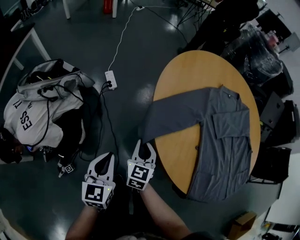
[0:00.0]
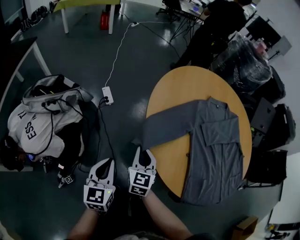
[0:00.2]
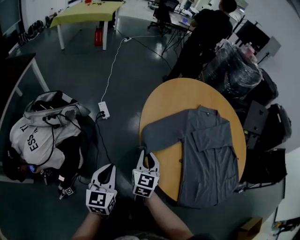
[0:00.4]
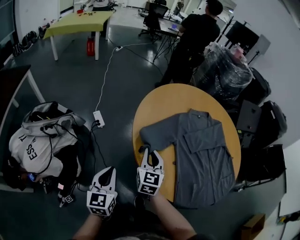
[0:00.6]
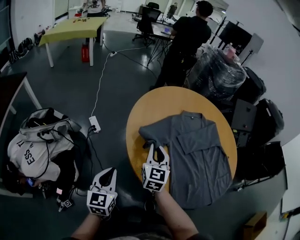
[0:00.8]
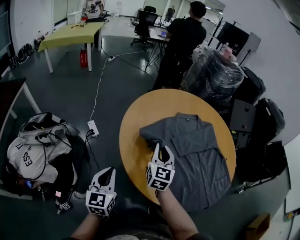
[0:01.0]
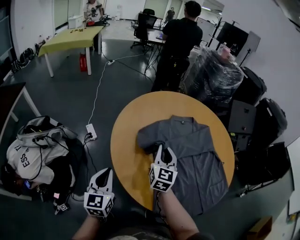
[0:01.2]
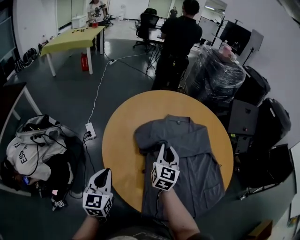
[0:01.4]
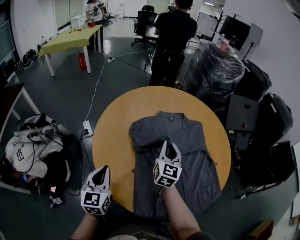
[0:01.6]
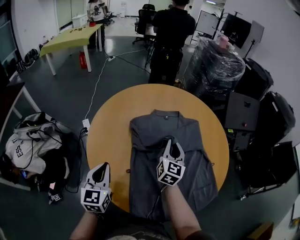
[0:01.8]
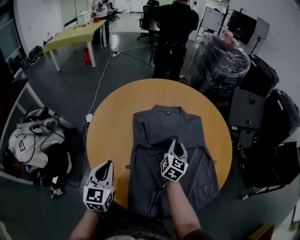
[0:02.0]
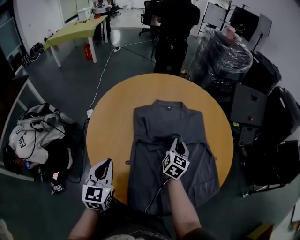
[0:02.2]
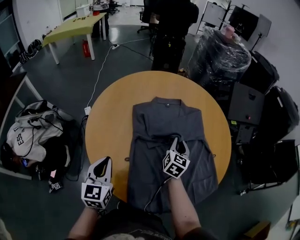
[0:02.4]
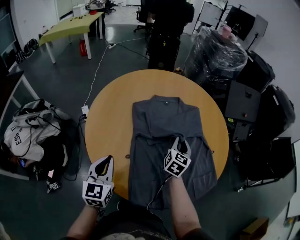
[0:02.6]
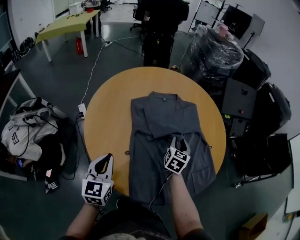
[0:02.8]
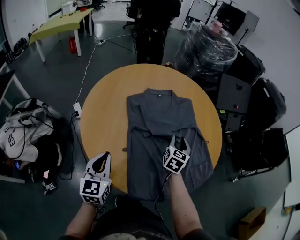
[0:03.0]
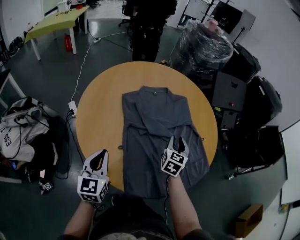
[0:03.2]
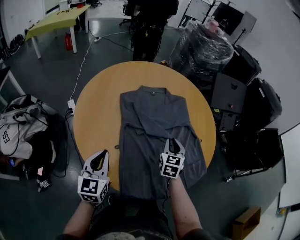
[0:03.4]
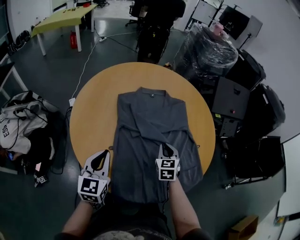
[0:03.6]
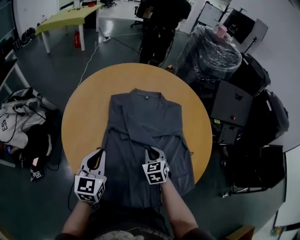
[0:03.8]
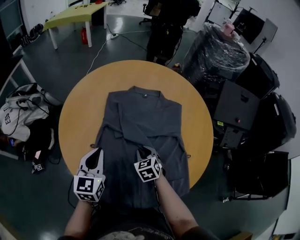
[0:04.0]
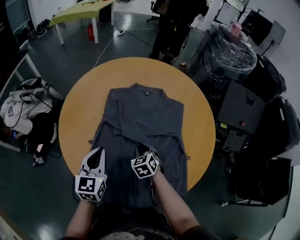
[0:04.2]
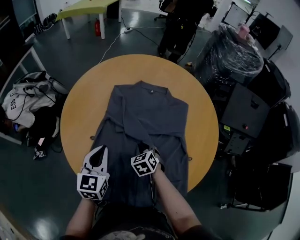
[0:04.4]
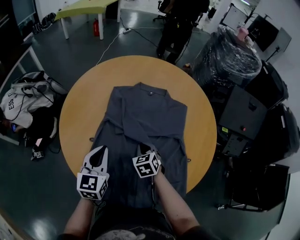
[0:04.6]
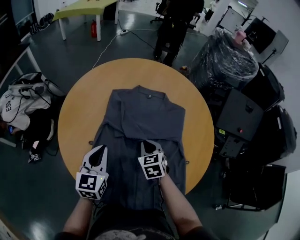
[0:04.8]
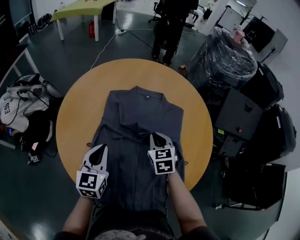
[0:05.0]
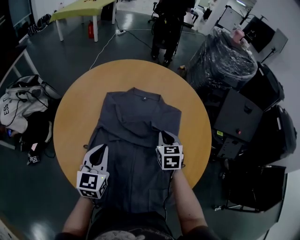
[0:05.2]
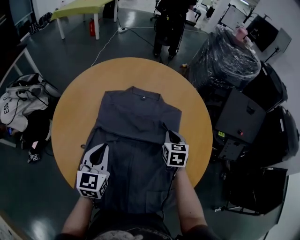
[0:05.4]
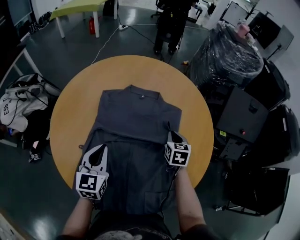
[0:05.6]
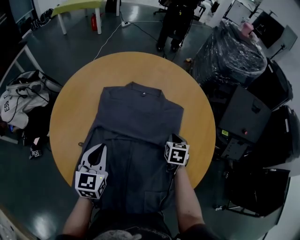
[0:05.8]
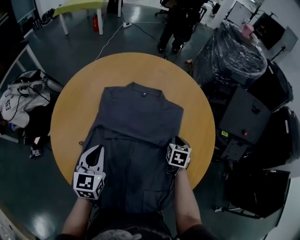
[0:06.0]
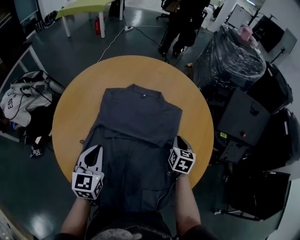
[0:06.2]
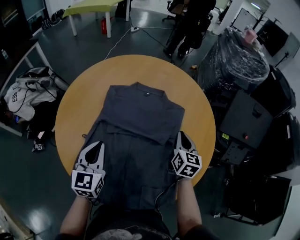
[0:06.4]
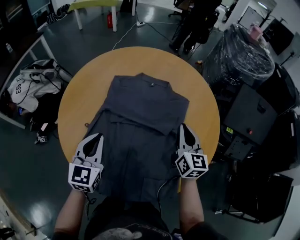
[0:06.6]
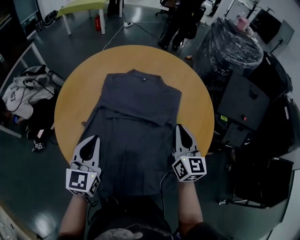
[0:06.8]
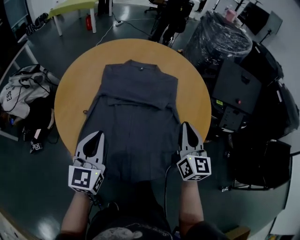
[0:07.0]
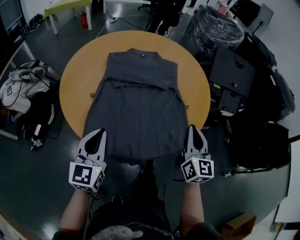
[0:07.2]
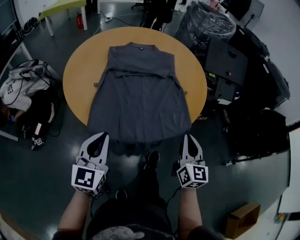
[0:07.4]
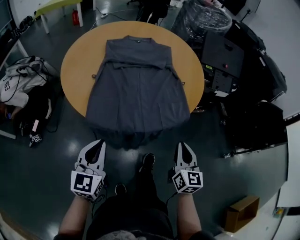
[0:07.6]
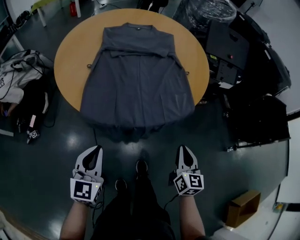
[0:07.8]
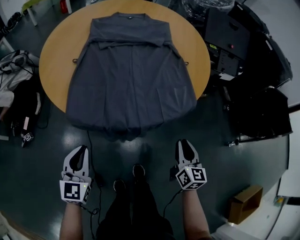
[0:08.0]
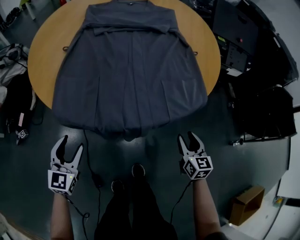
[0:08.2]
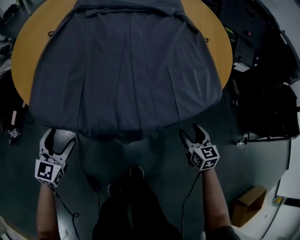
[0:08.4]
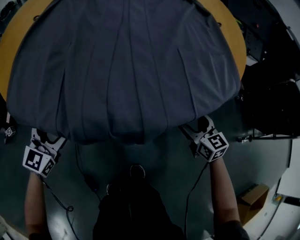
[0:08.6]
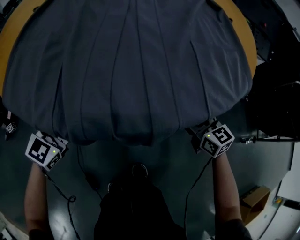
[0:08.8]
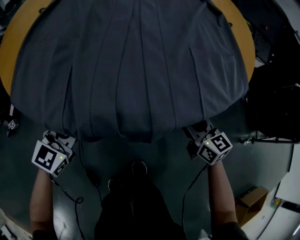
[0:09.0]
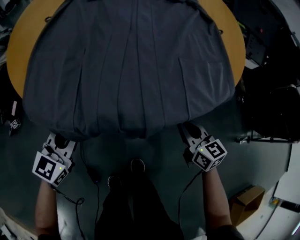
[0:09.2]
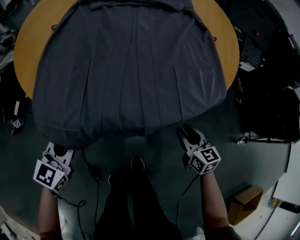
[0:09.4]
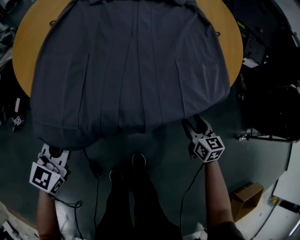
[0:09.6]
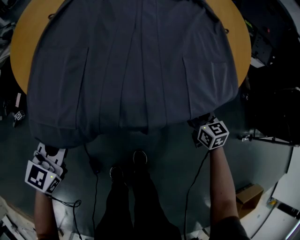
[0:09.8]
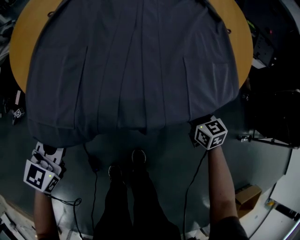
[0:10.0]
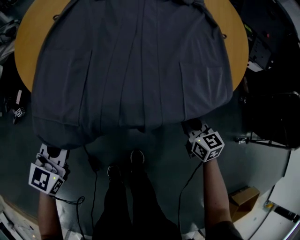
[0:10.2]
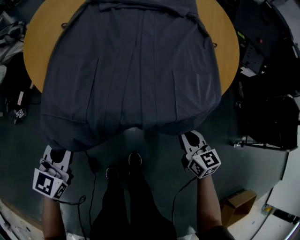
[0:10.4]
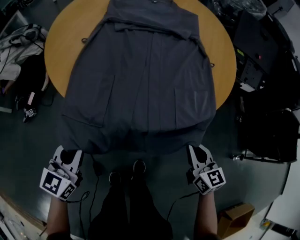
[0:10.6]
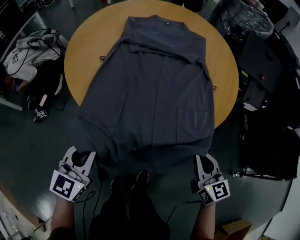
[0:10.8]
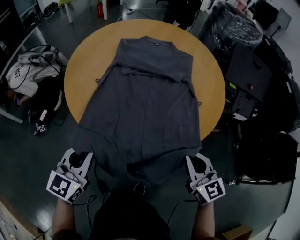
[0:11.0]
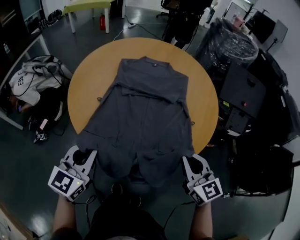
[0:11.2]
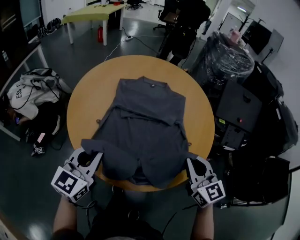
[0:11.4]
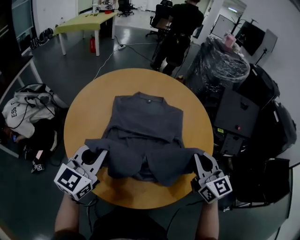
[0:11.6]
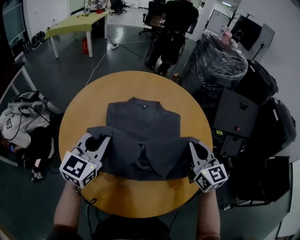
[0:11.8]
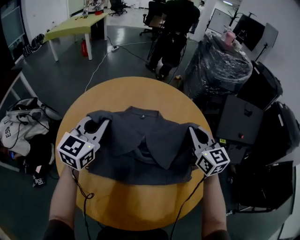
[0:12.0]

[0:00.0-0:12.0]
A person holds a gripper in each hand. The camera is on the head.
0.0 to 1.6 s: The right gripper shifts about 50 cm to the right and upward, and turns by approximately 20 degrees. Meanwhile the left gripper goes about 30 cm to the right and upward.
1.6 to 3.0 s: The left gripper heads to the right, covering about 10 cm. Meanwhile the right gripper is displaced to the right and downward by roughly 20 cm, changes its angle by approximately 20 degrees, and opens up.
3.0 to 4.4 s: The left gripper moves some 20 cm; the right gripper is displaced downward by about 10 cm, and changes its angle by some 70 degrees.
4.4 to 6.0 s: The left gripper travels forward by approximately 5 cm. Meanwhile the right gripper is displaced to the right and forward by some 25 cm, and turns by approximately 40 degrees.
6.0 to 7.6 s: The two grippers go roughly 50 cm backward. The right gripper tilts its fingers about 30 degrees upward.
7.6 to 9.0 s: Both grippers travel together downward, about 35 cm. The left gripper opens up, while the right gripper swivels approximately 30 degrees, and opens.
9.0 to 10.4 s: The left gripper heads upward and backward, covering approximately 15 cm, and closes. The right gripper moves upward and backward, about 10 cm, and closes up.
10.4 to 12.0 s: The pair of grippers is taken forward, about 50 cm. The grippers both shift upward by roughly 40 cm. The right gripper swivels about 30 degrees.

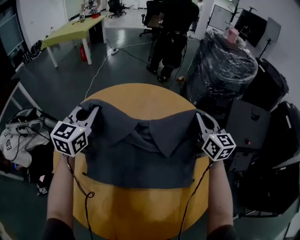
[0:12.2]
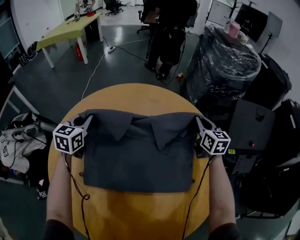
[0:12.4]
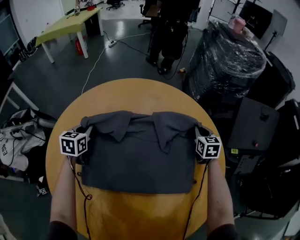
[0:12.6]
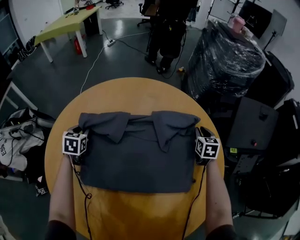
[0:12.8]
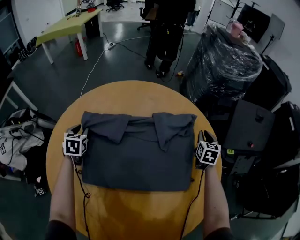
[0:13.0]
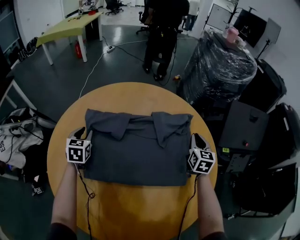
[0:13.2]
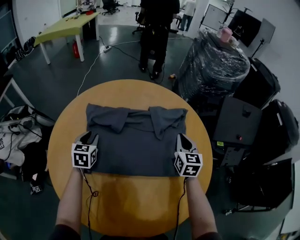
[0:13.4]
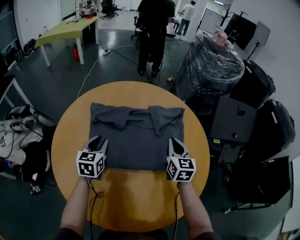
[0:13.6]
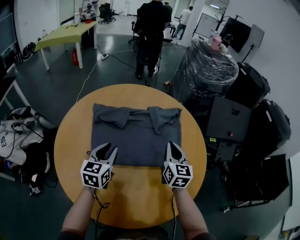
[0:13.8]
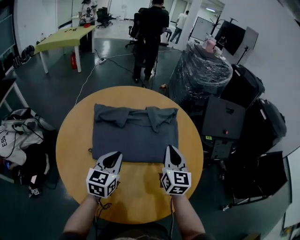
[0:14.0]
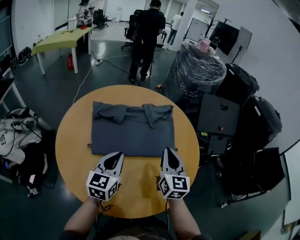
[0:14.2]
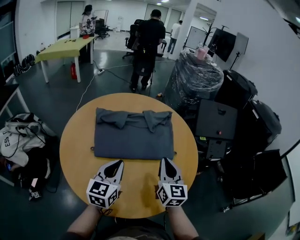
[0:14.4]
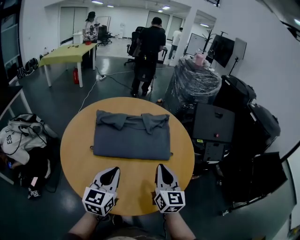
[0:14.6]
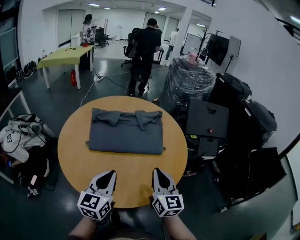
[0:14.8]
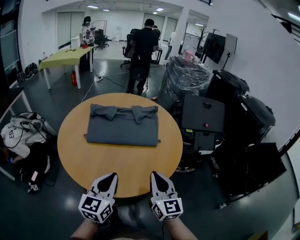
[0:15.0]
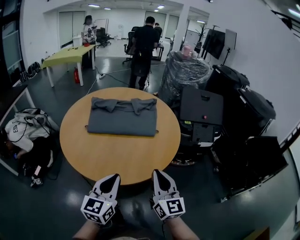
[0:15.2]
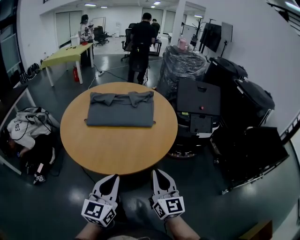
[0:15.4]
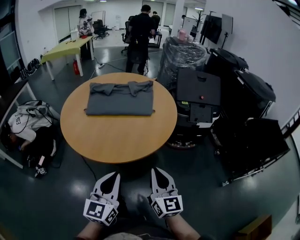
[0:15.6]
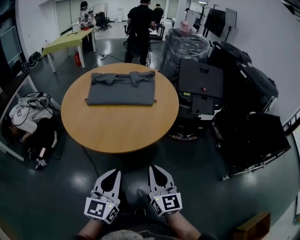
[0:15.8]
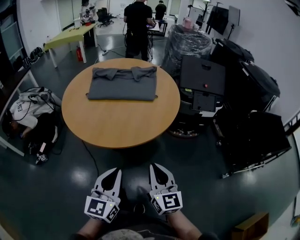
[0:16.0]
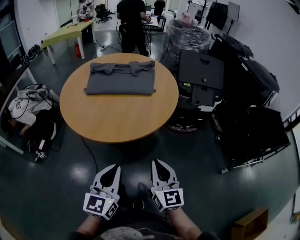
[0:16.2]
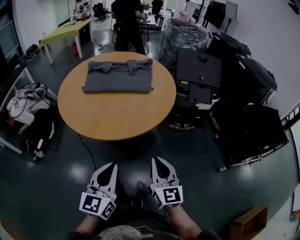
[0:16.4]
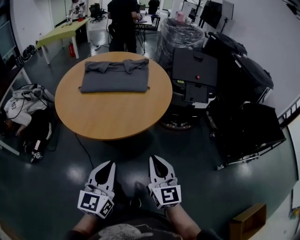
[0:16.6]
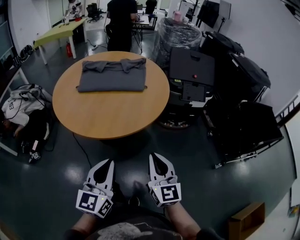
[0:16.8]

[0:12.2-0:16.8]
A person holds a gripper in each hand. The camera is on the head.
12.2 to 13.8 s: The left gripper moves backward and downward, approximately 20 cm, and opens; the right gripper moves backward, approximately 20 cm.
13.8 to 15.2 s: The pair of grippers is taken backward, about 50 cm. The left gripper closes; the right gripper changes its angle by approximately 20 degrees.
15.2 to 16.8 s: The right gripper heads backward and to the right, covering about 15 cm, while the left gripper is displaced backward by roughly 15 cm.

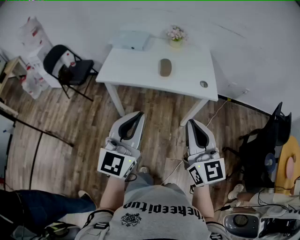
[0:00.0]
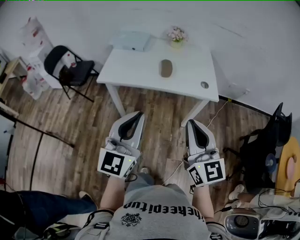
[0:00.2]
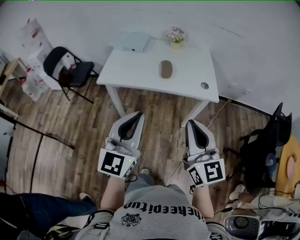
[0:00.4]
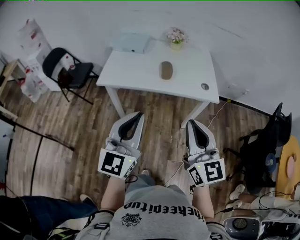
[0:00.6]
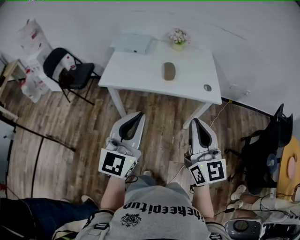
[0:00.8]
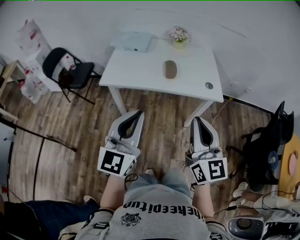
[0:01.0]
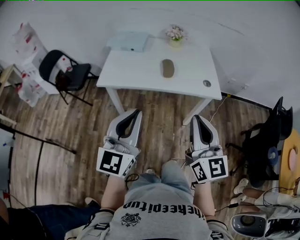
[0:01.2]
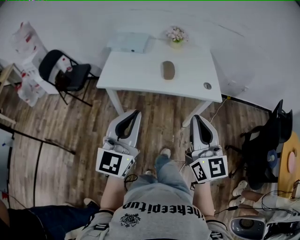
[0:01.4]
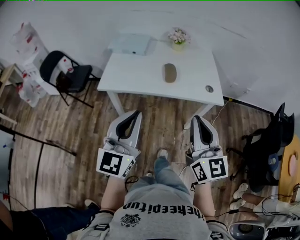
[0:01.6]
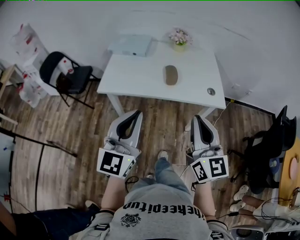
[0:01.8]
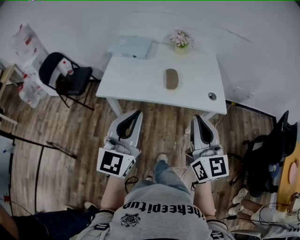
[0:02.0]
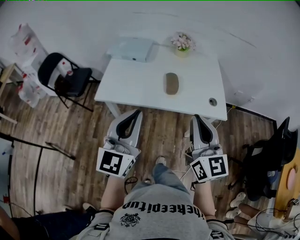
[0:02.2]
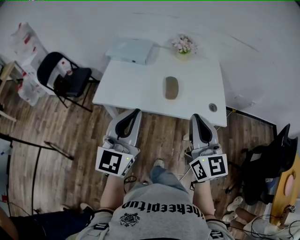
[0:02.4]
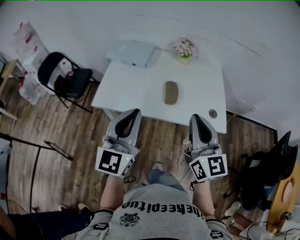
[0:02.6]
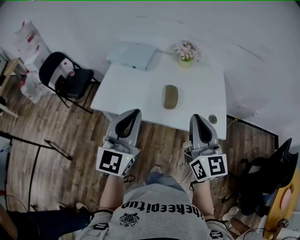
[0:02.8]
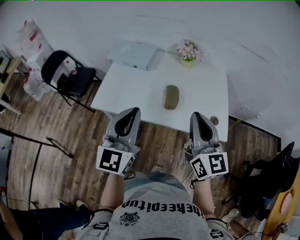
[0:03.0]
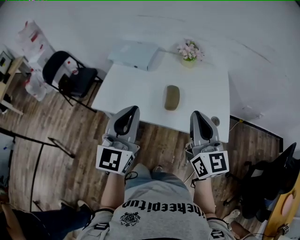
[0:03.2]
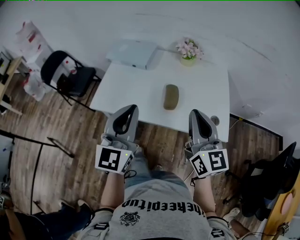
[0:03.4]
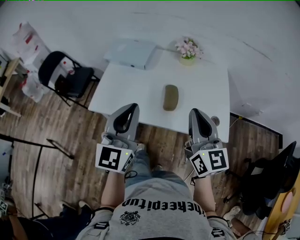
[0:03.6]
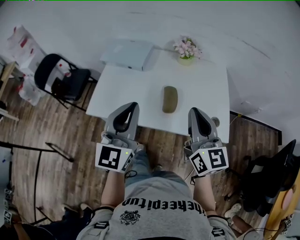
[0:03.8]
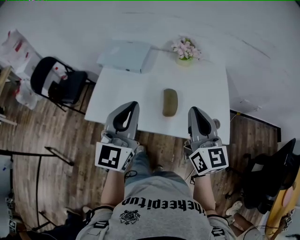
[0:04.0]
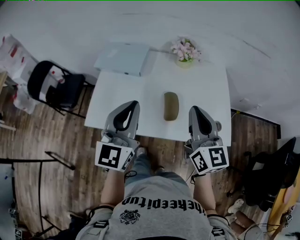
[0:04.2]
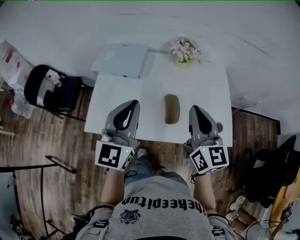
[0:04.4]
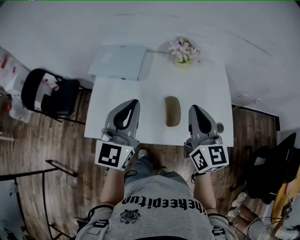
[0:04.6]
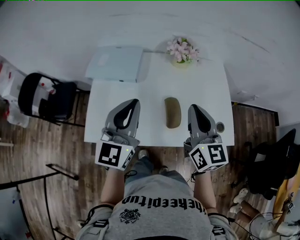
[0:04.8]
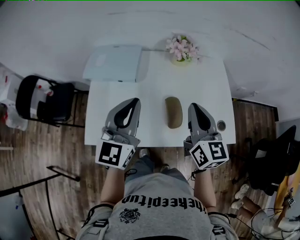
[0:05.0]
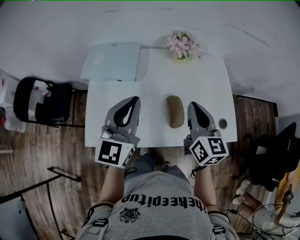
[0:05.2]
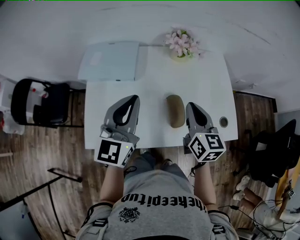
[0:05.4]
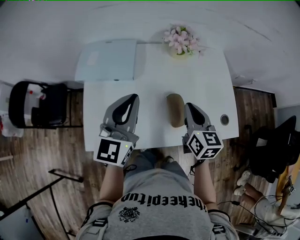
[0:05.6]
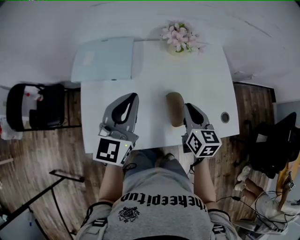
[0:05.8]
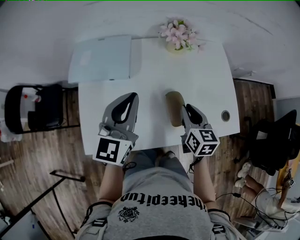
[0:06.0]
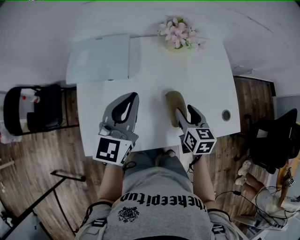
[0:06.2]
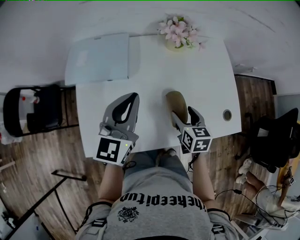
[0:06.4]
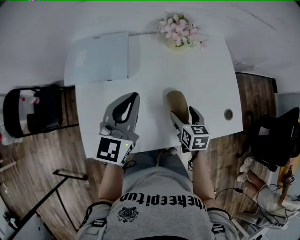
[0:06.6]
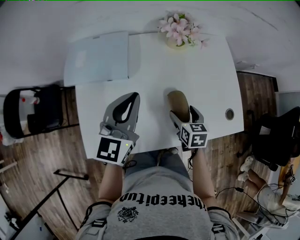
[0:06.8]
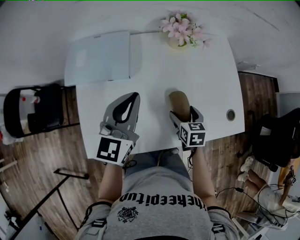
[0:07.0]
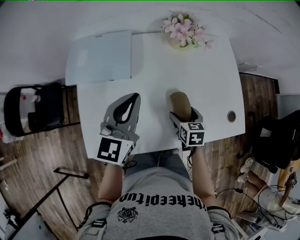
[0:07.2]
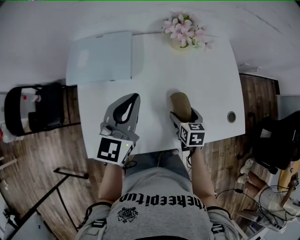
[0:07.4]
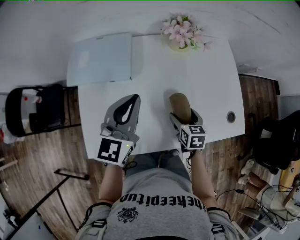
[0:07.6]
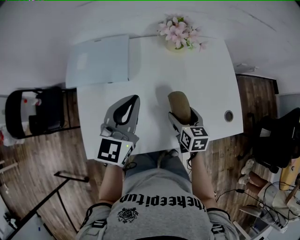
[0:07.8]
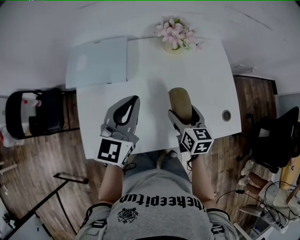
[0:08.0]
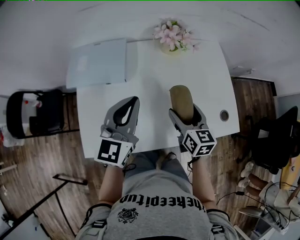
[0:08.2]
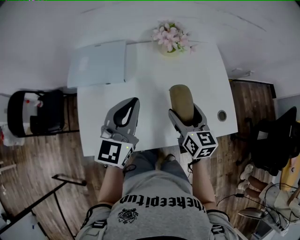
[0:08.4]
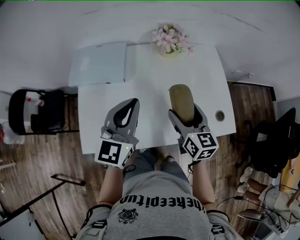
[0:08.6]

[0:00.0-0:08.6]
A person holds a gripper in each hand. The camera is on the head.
0.0 to 1.4 s: The left gripper heads to the left, covering some 5 cm; the right gripper ends up about 5 cm from where it was.
1.4 to 2.8 s: Both grippers travel together forward, about 25 cm.
2.8 to 4.4 s: Both grippers travel together forward, approximately 15 cm.
4.4 to 5.8 s: The right gripper moves downward and forward, about 20 cm, and rotates about 30 degrees, while the left gripper moves forward and downward, roughly 15 cm.
5.8 to 7.2 s: The right gripper travels downward by approximately 15 cm, turns by about 20 degrees, and opens, while the left gripper ends up about 5 cm from where it was.
7.2 to 8.6 s: The left gripper is displaced backward by about 5 cm, while the right gripper shifts some 20 cm upward, and tilts its fingers about 30 degrees upward.
